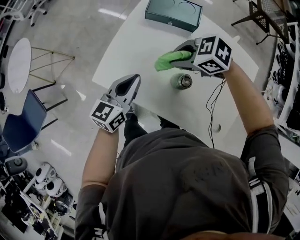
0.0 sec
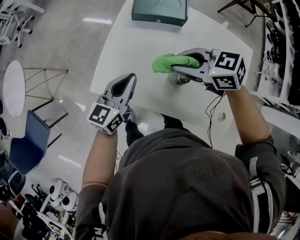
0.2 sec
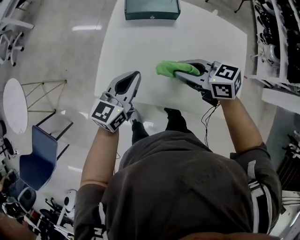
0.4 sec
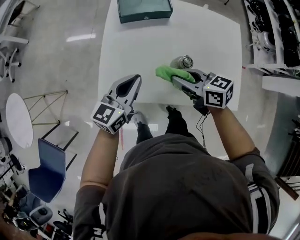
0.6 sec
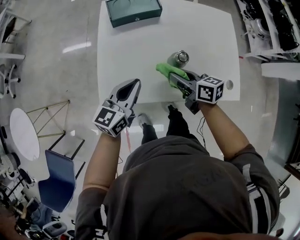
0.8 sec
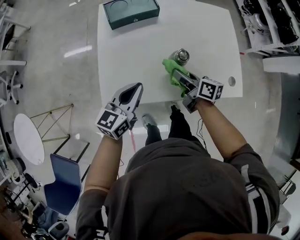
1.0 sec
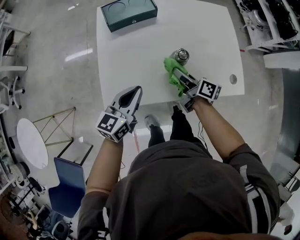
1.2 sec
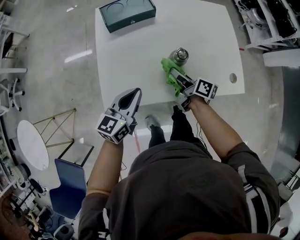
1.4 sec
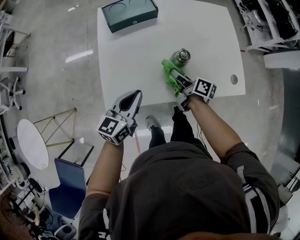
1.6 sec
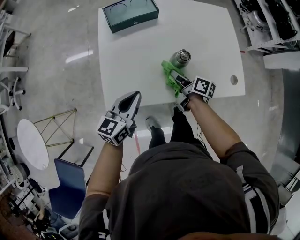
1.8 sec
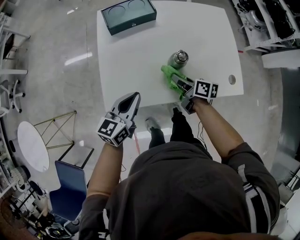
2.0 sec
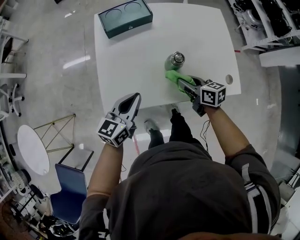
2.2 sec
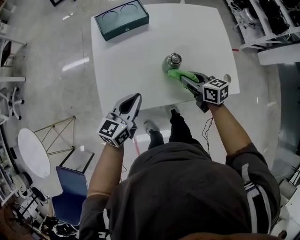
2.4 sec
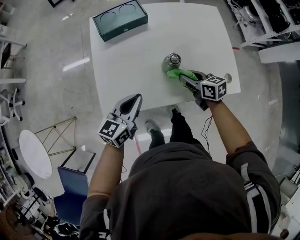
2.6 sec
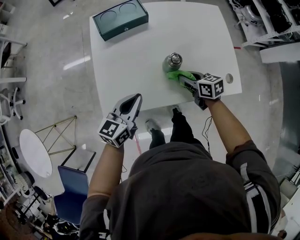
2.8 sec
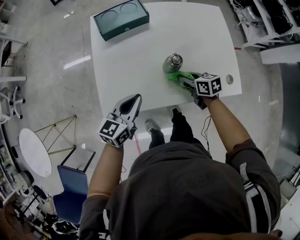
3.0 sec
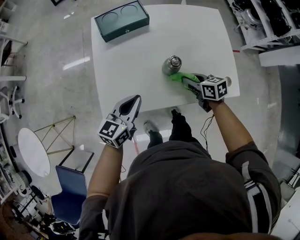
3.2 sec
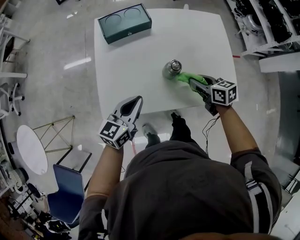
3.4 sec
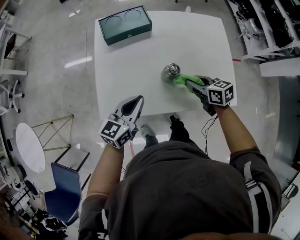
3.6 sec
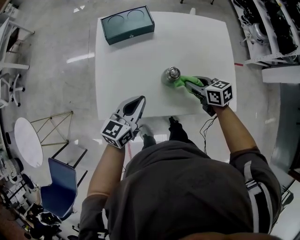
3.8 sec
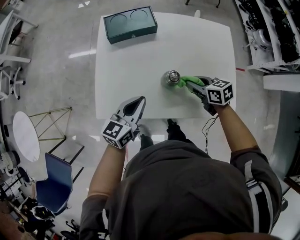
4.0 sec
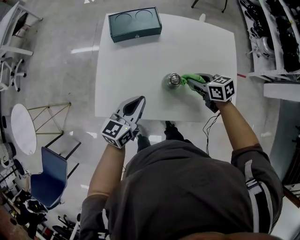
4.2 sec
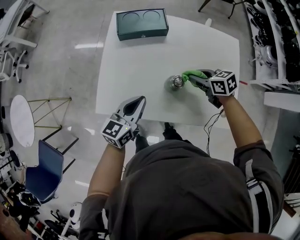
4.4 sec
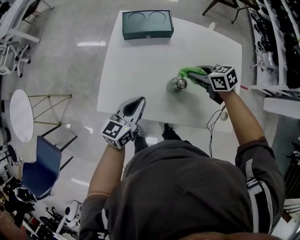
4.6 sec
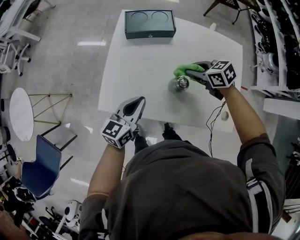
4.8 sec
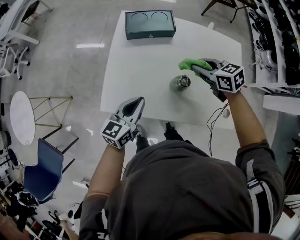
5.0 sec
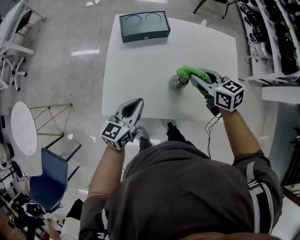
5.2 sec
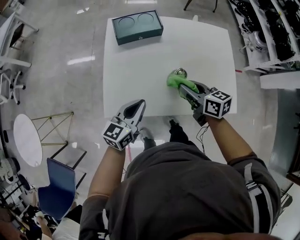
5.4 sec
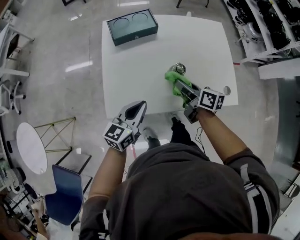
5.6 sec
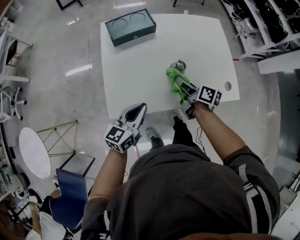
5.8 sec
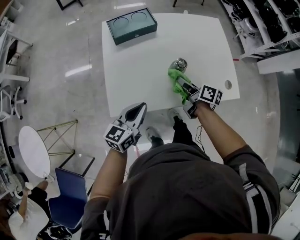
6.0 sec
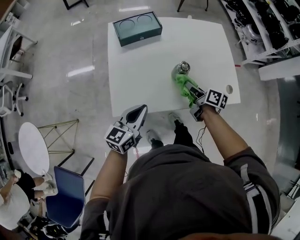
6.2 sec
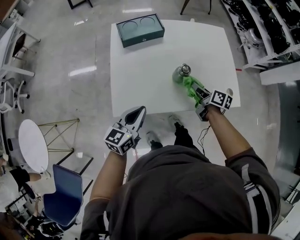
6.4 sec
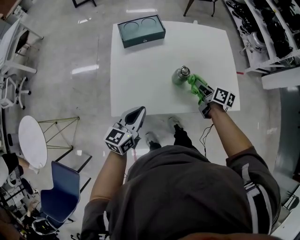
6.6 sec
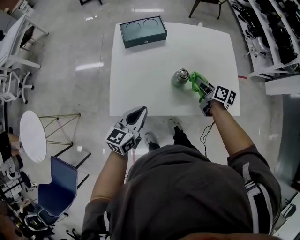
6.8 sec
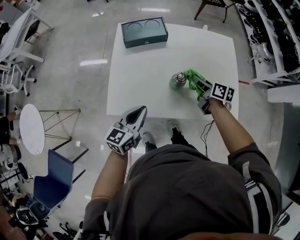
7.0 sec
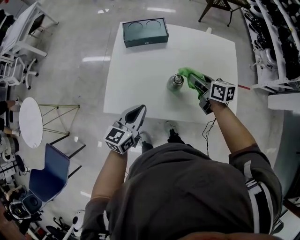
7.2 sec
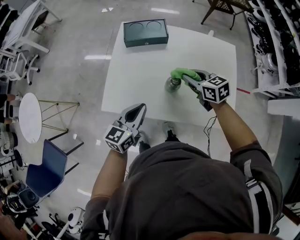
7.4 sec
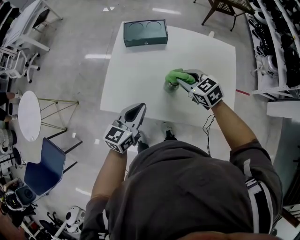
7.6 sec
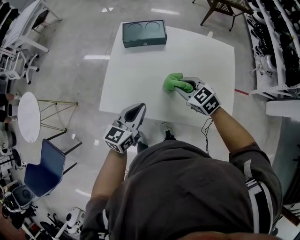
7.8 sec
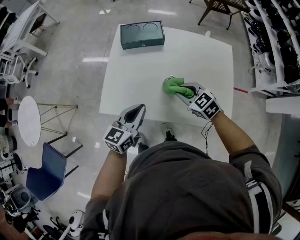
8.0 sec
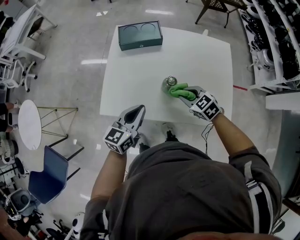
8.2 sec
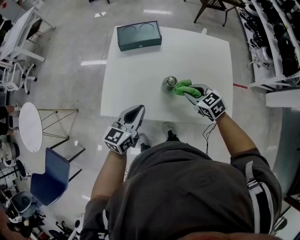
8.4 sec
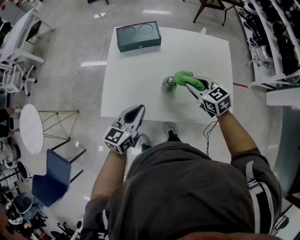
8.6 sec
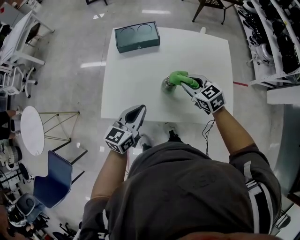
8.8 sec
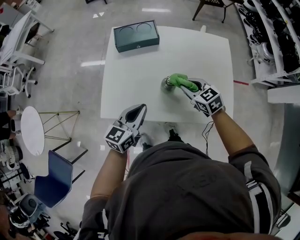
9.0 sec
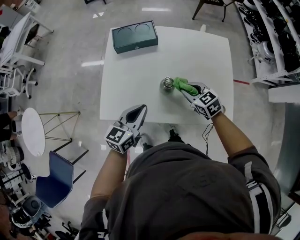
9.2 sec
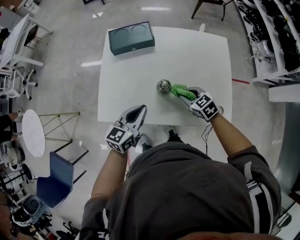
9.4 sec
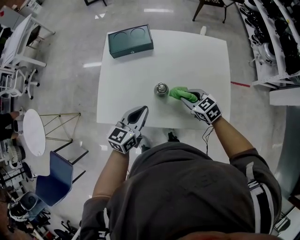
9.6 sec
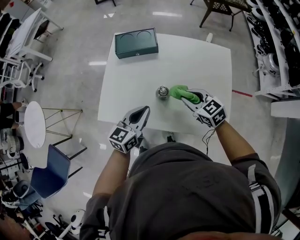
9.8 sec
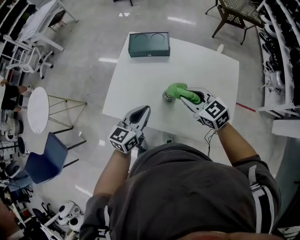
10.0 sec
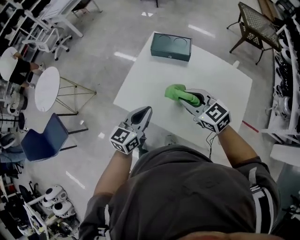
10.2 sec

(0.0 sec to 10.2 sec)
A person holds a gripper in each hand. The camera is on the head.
0.0 sec - 1.4 sec: The right gripper moves approximately 15 cm, and tips its fingers upward by some 30 degrees, while the left gripper rotates approximately 30 degrees.
1.4 sec - 3.0 sec: The right gripper is displaced to the right by about 5 cm, and changes its angle by some 40 degrees.
3.0 sec - 4.4 sec: The right gripper heads forward and upward, covering some 10 cm, and changes its angle by about 30 degrees, while the left gripper shifts by about 5 cm.
4.4 sec - 5.8 sec: The left gripper moves roughly 10 cm; the right gripper reaches roughly 10 cm upward, then returns, and rotates roughly 60 degrees.
5.8 sec - 7.2 sec: The left gripper changes place by about 5 cm, while the right gripper moves forward and to the right, about 10 cm, and changes its angle by approximately 40 degrees.
7.2 sec - 8.8 sec: The right gripper travels backward and back again, approximately 5 cm each way, and changes its angle by approximately 40 degrees.
8.8 sec - 10.2 sec: The right gripper moves upward, about 10 cm, and changes its angle by approximately 30 degrees; the left gripper rotates about 20 degrees.

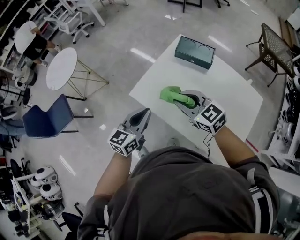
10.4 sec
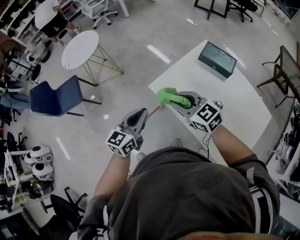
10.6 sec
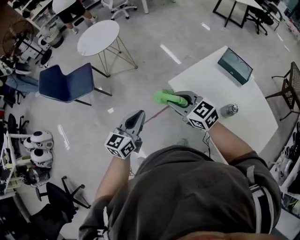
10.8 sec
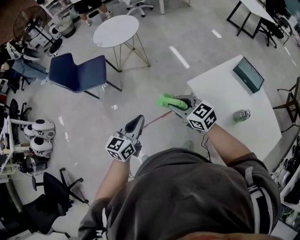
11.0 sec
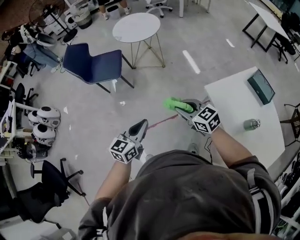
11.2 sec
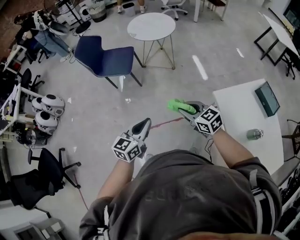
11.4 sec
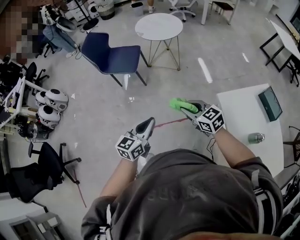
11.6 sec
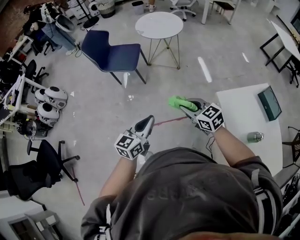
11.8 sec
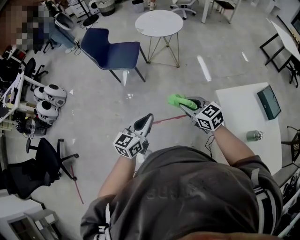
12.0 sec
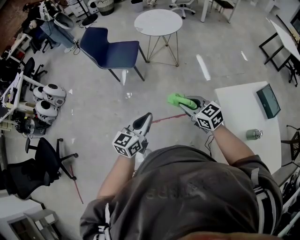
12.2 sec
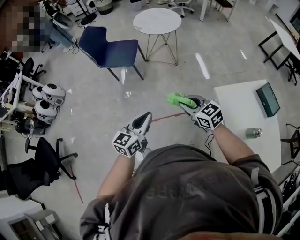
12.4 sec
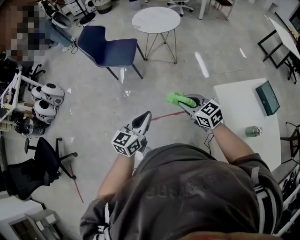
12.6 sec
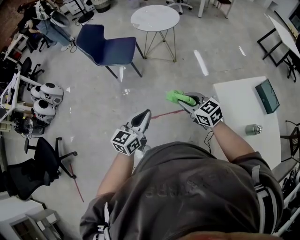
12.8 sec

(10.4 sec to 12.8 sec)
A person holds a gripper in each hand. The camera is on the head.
10.4 sec - 11.6 sec: The pair of grippers is taken roughly 50 cm. The right gripper rotates roughly 40 degrees, while the left gripper swivels approximately 40 degrees.
11.6 sec - 12.8 sec: The grippers make only small movements.

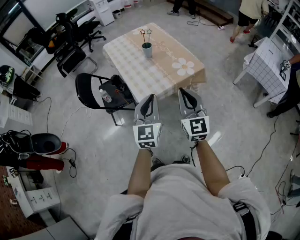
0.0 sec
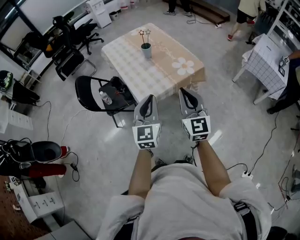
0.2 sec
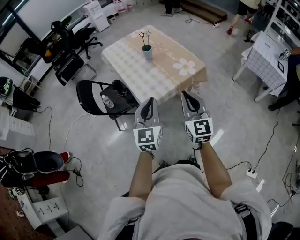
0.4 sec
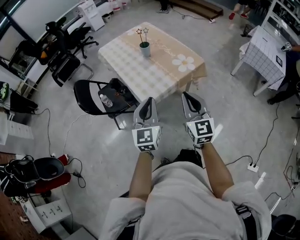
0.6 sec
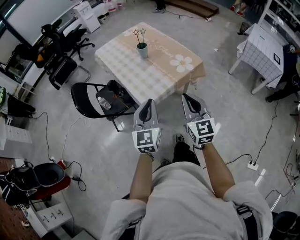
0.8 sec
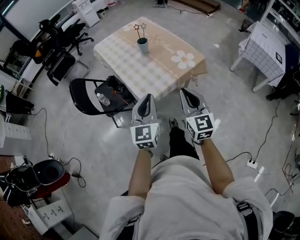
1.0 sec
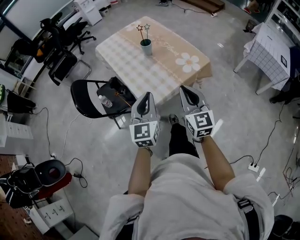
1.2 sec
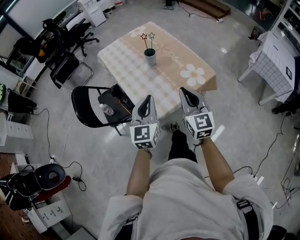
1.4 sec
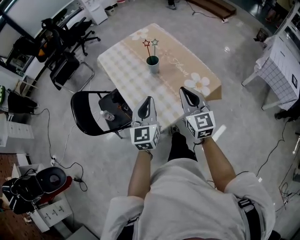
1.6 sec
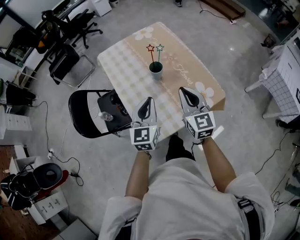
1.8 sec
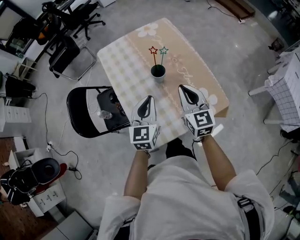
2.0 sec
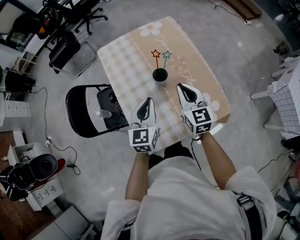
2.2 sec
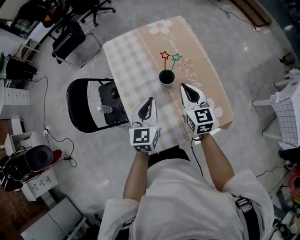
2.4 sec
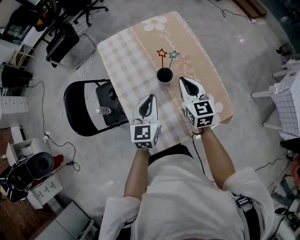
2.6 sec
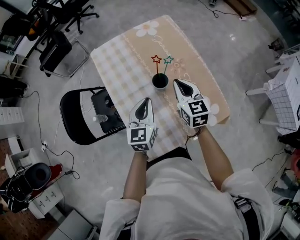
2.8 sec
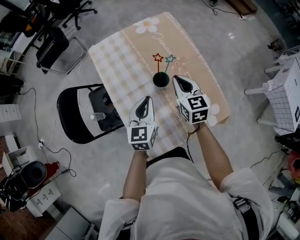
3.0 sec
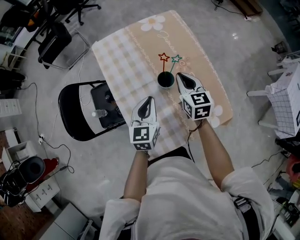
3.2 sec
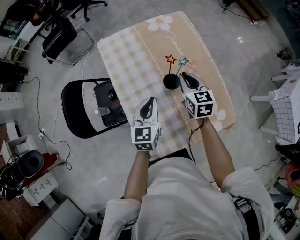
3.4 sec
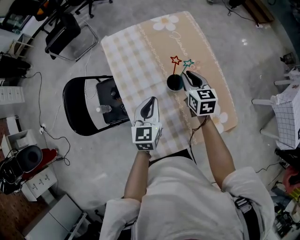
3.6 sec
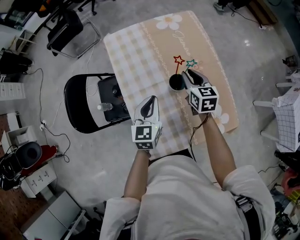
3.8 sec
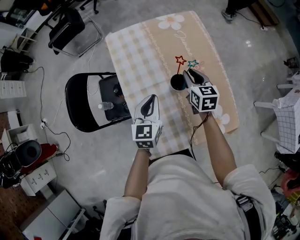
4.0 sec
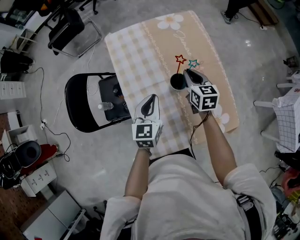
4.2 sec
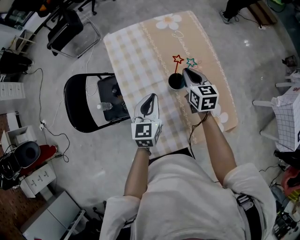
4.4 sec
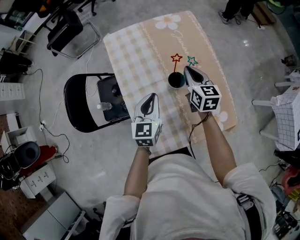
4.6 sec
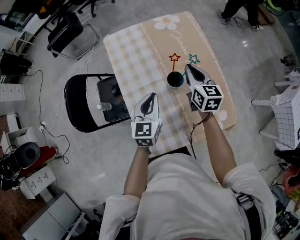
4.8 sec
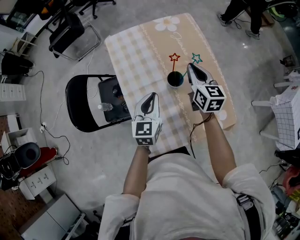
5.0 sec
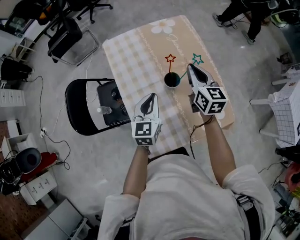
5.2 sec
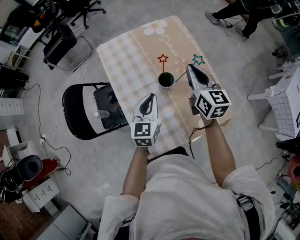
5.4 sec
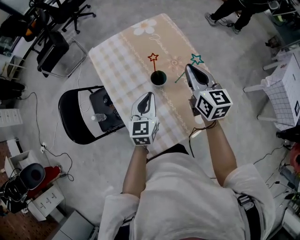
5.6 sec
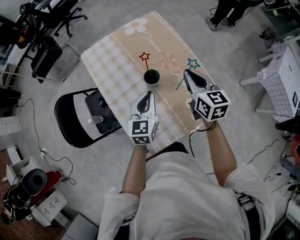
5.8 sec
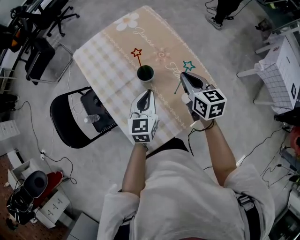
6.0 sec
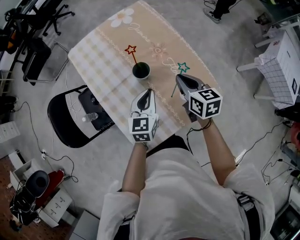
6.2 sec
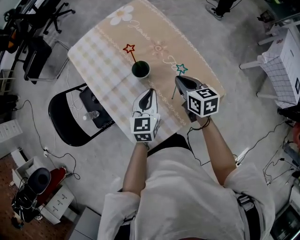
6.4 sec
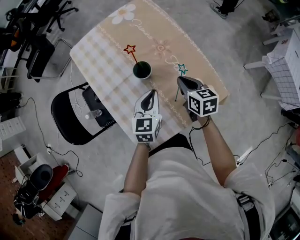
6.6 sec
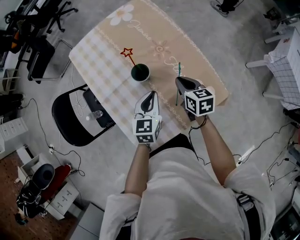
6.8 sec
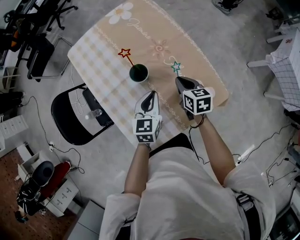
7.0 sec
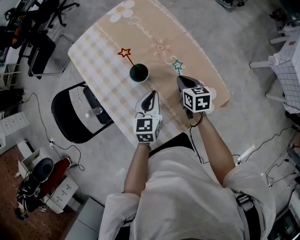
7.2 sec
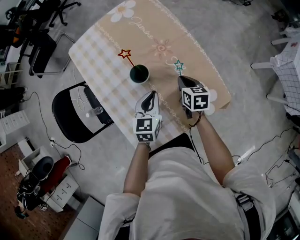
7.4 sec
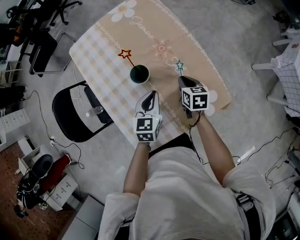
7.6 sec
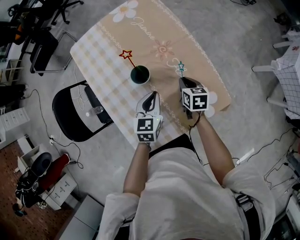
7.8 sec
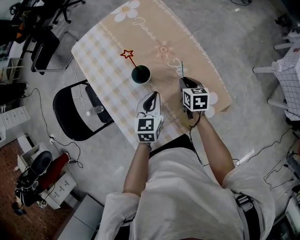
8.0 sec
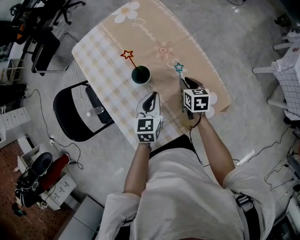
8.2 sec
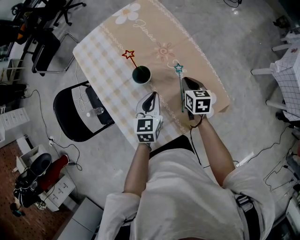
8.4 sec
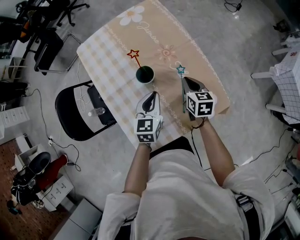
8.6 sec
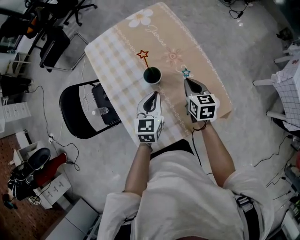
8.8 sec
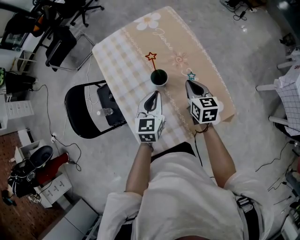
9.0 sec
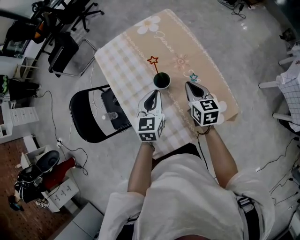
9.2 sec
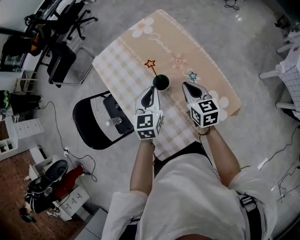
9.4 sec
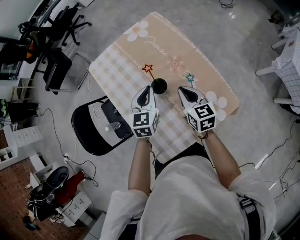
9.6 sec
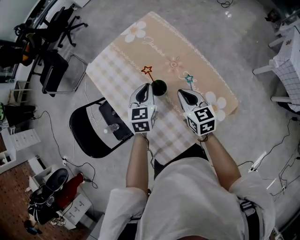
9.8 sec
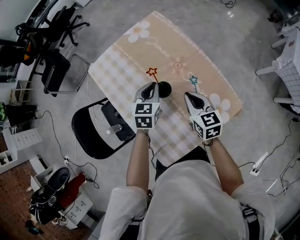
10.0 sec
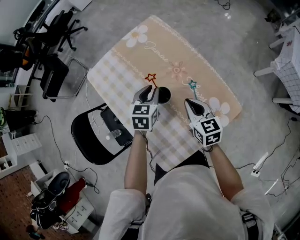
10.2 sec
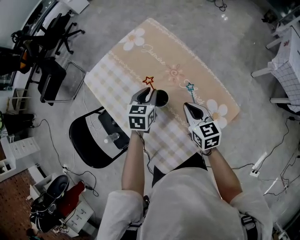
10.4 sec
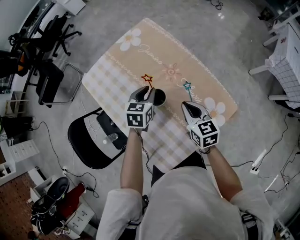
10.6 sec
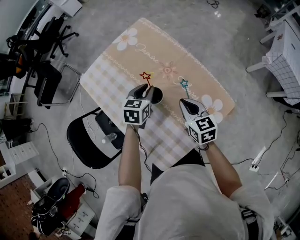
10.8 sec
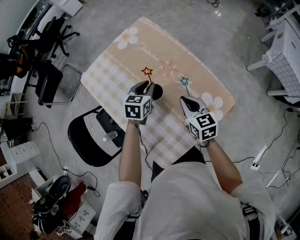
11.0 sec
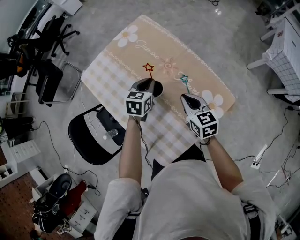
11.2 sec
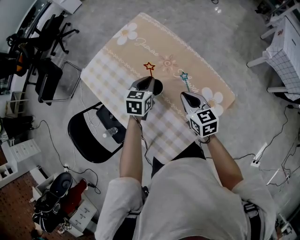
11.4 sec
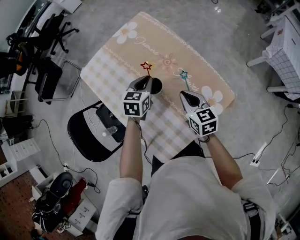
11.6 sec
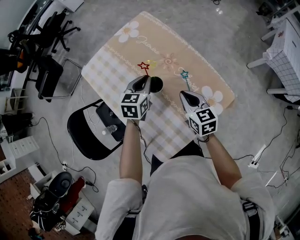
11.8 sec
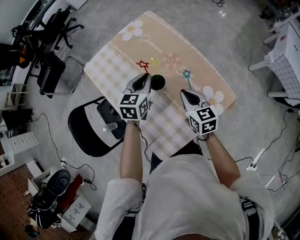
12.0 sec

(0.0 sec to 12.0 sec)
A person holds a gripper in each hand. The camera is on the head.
0.0 sec - 1.6 sec: Both grippers travel together forward, approximately 25 cm.
1.6 sec - 3.0 sec: The right gripper travels forward by roughly 30 cm, and turns by some 20 degrees; the left gripper goes some 25 cm forward and downward.
3.0 sec - 4.4 sec: The right gripper travels forward by approximately 5 cm.
4.4 sec - 6.0 sec: The right gripper is displaced backward, to the right and upward by roughly 15 cm, while the left gripper shifts approximately 10 cm to the right.
6.0 sec - 7.6 sec: The left gripper moves downward, approximately 10 cm. Meanwhile the right gripper shifts roughly 20 cm downward, and turns by about 20 degrees.
7.6 sec - 9.0 sec: The right gripper heads upward, covering some 10 cm; the left gripper shifts about 10 cm upward and to the left.
9.0 sec - 10.4 sec: The left gripper goes about 10 cm forward, and swivels roughly 20 degrees.
10.4 sec - 12.0 sec: The left gripper heads upward, covering roughly 5 cm.
